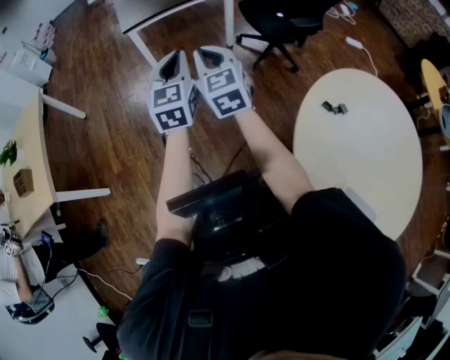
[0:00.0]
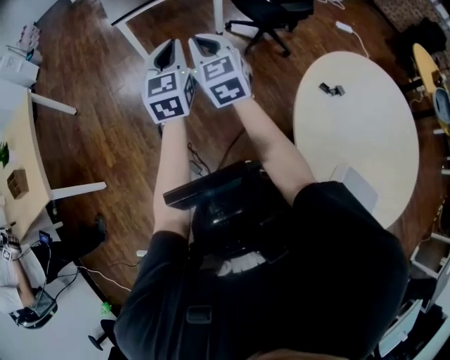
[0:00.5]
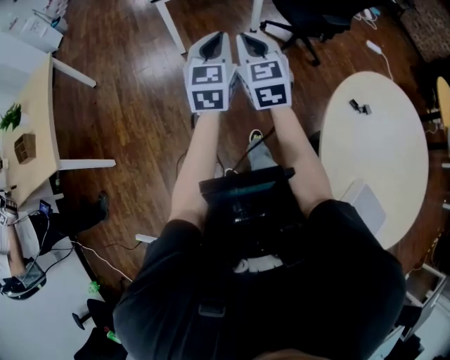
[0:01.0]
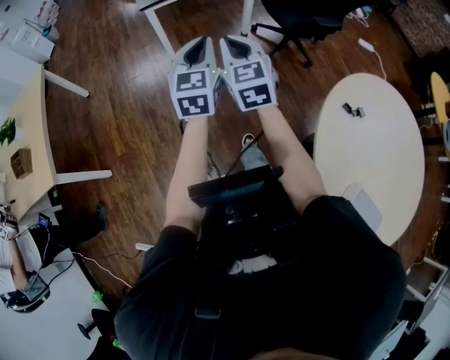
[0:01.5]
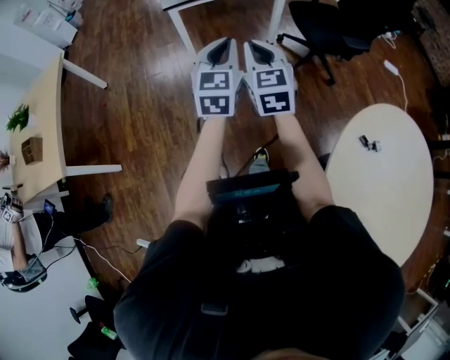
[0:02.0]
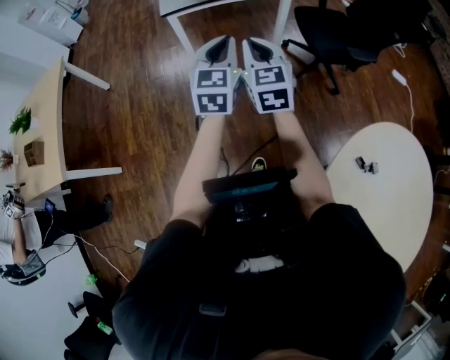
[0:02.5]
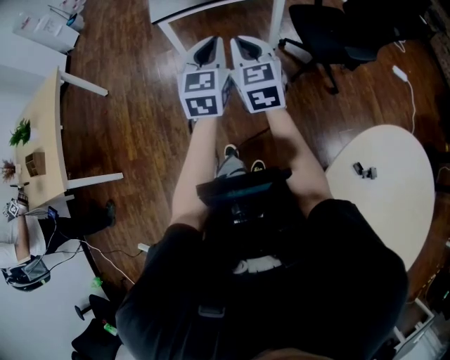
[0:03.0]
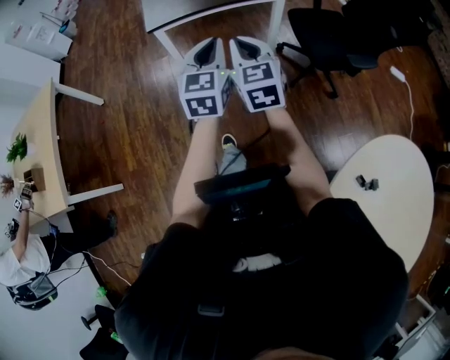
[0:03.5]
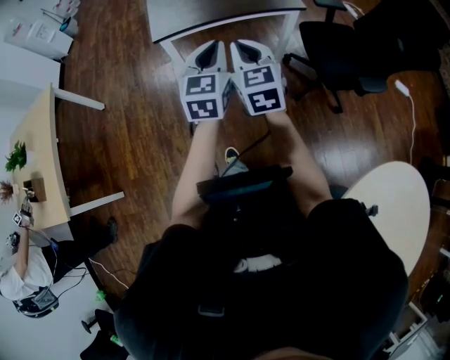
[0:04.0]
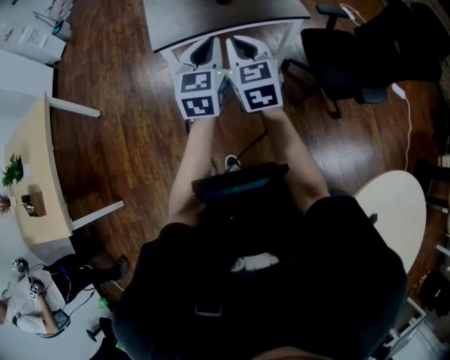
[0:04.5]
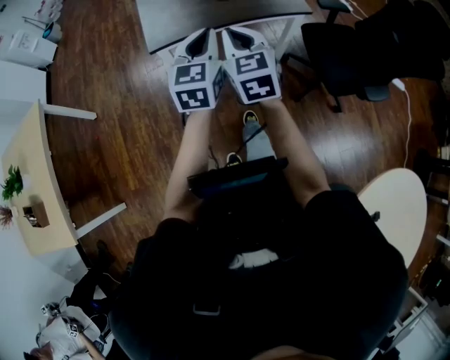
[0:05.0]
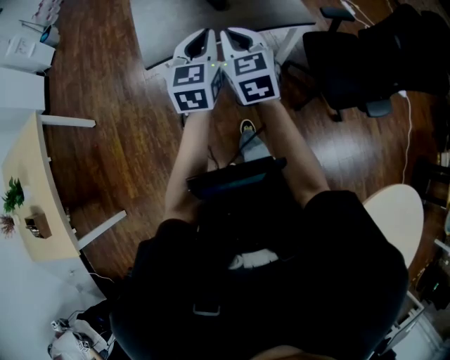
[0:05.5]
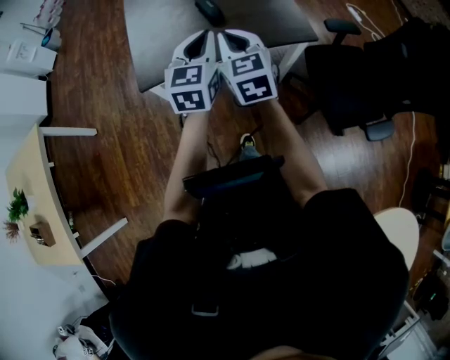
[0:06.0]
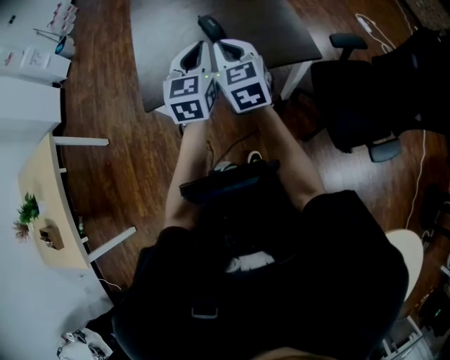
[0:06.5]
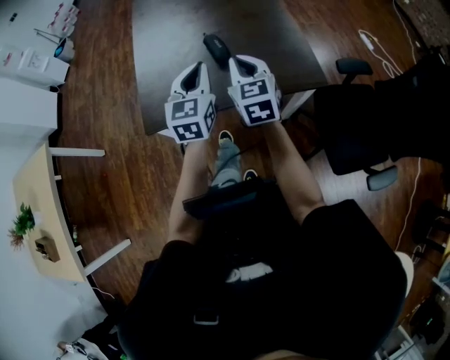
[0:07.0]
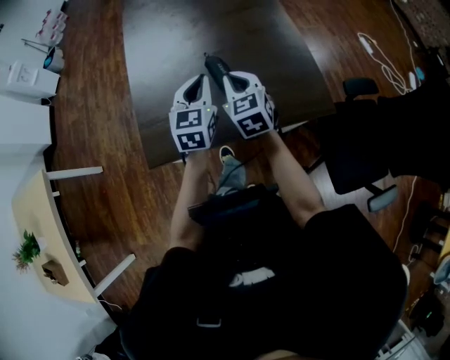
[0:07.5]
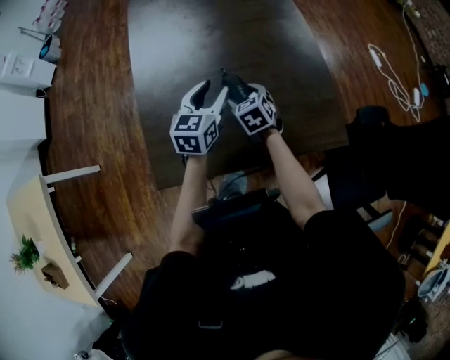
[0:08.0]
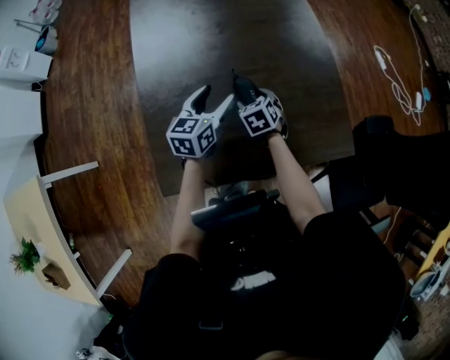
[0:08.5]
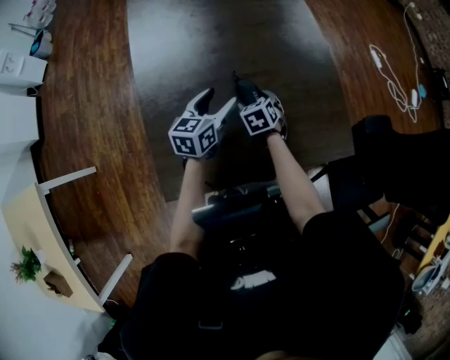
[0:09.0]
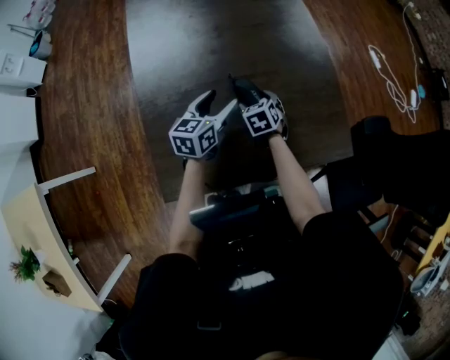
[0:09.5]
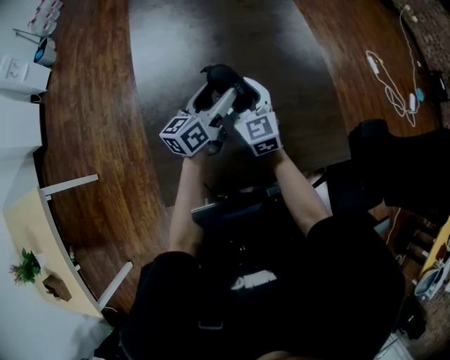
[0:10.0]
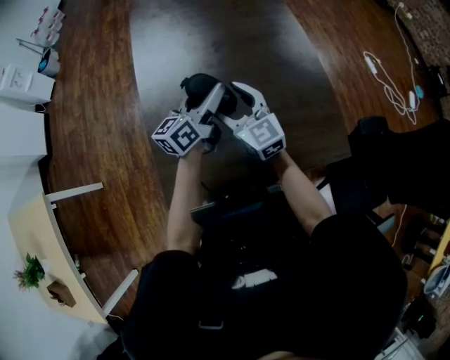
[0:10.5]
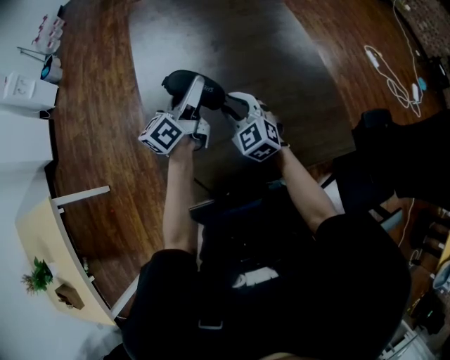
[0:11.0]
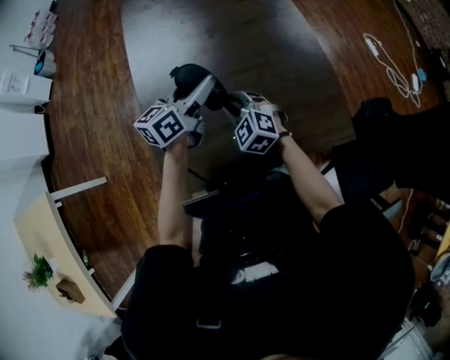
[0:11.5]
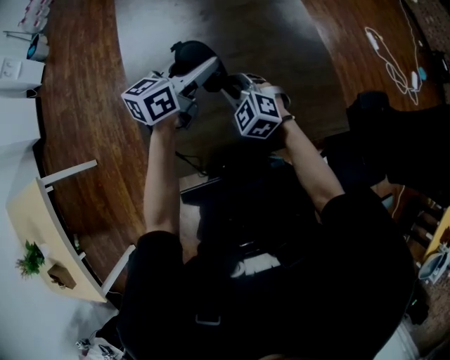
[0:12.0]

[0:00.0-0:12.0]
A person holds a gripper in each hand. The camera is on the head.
0:00.0 to 0:02.0: Both grippers travel together forward, roughly 10 cm.
0:02.0 to 0:04.0: Both grippers travel together forward, approximately 30 cm.
0:04.0 to 0:06.0: Both grippers travel together forward, about 30 cm.
0:06.0 to 0:08.0: The two grippers go approximately 40 cm forward and downward. The right gripper tilts its fingers some 30 degrees downward, and opens up. The left gripper opens its fingers.
0:08.0 to 0:10.0: The right gripper goes some 10 cm upward and to the left, and points its fingers some 30 degrees further upward; the left gripper shifts by some 5 cm, rotates some 30 degrees, and opens.
0:10.0 to 0:12.0: The left gripper goes to the left and returns, roughly 5 cm each way, while the right gripper heads backward, covering approximately 5 cm, turns by about 40 degrees, and closes up.

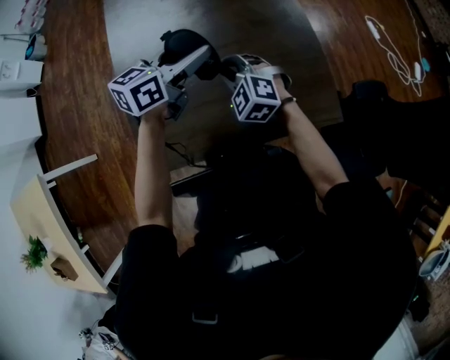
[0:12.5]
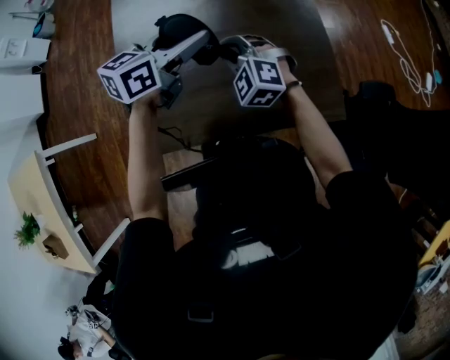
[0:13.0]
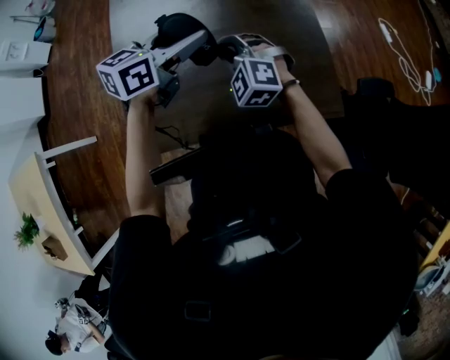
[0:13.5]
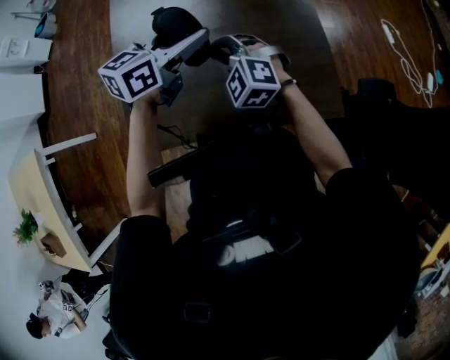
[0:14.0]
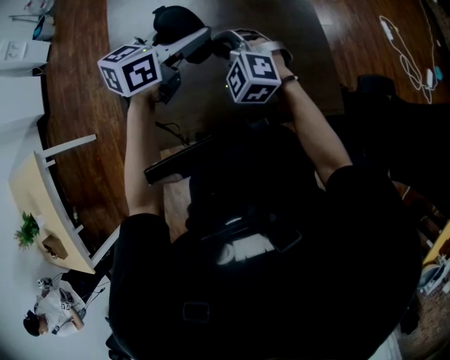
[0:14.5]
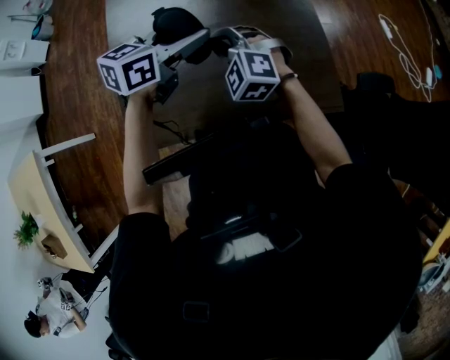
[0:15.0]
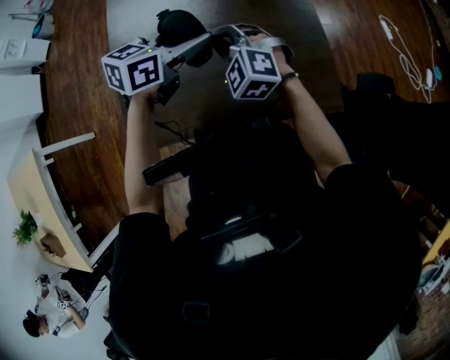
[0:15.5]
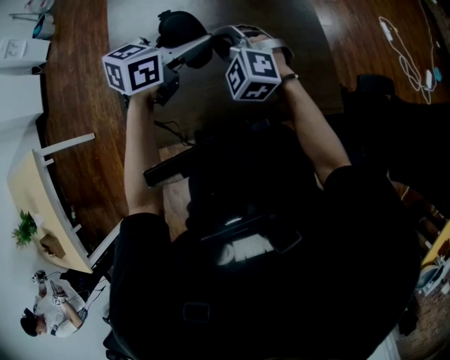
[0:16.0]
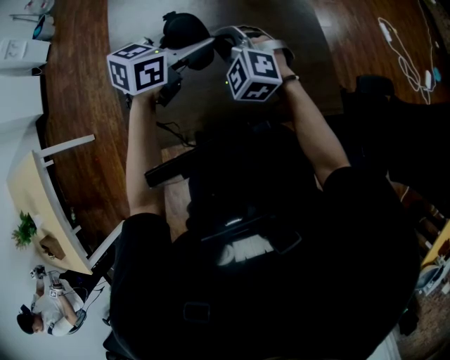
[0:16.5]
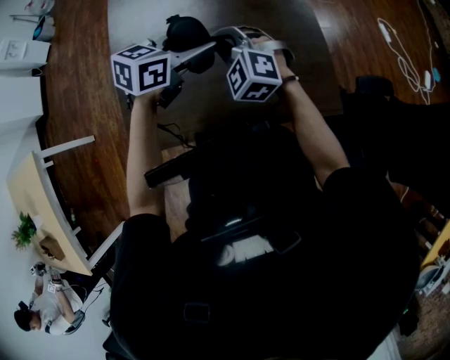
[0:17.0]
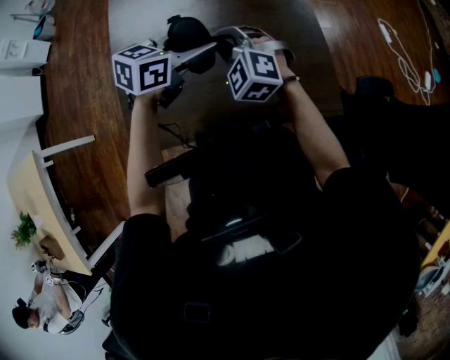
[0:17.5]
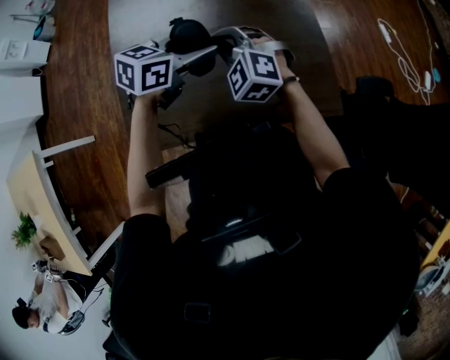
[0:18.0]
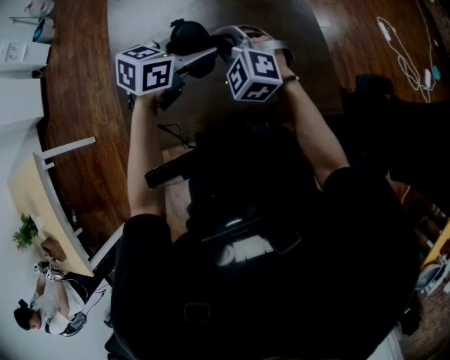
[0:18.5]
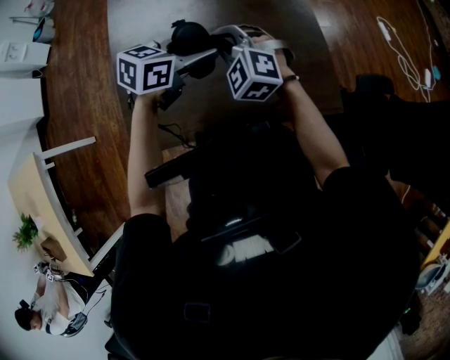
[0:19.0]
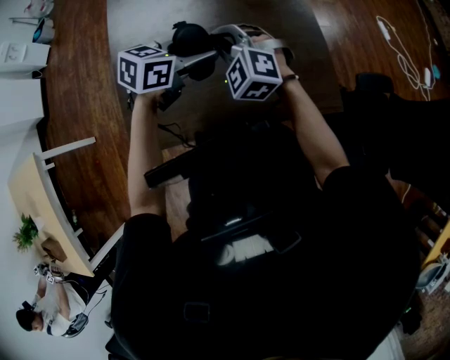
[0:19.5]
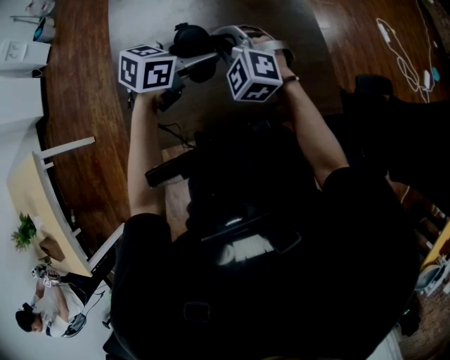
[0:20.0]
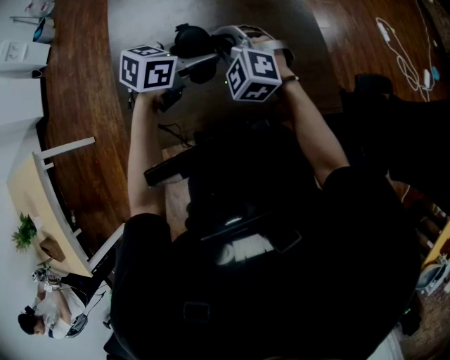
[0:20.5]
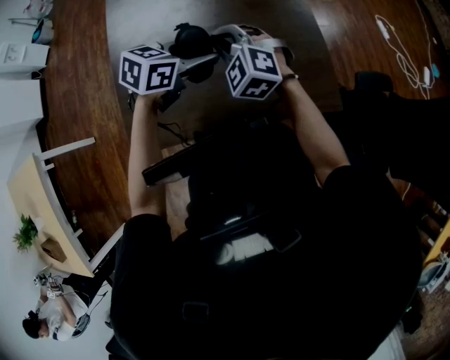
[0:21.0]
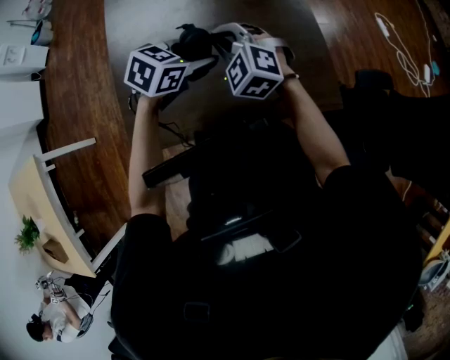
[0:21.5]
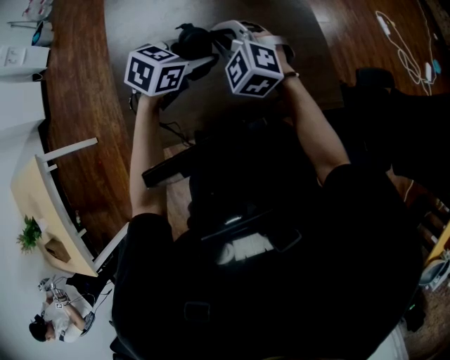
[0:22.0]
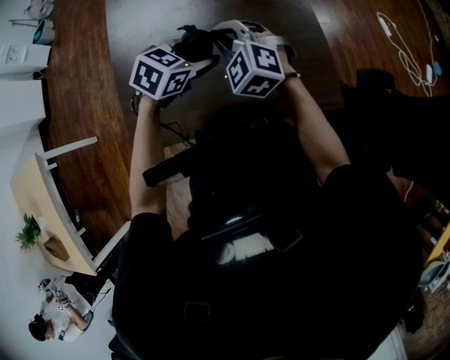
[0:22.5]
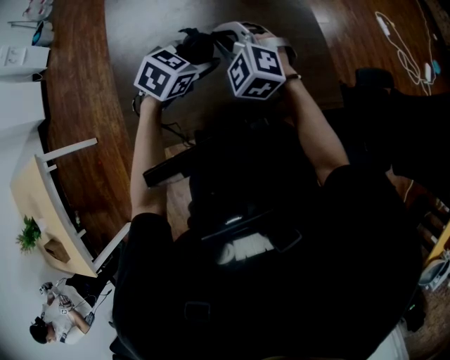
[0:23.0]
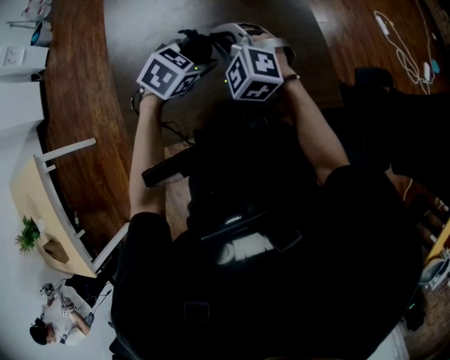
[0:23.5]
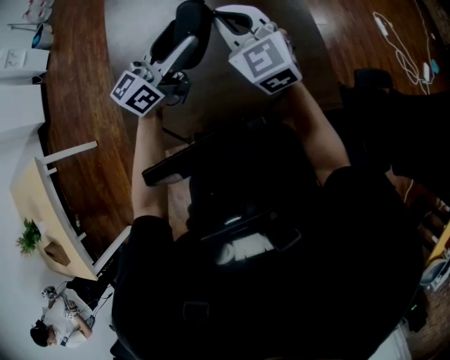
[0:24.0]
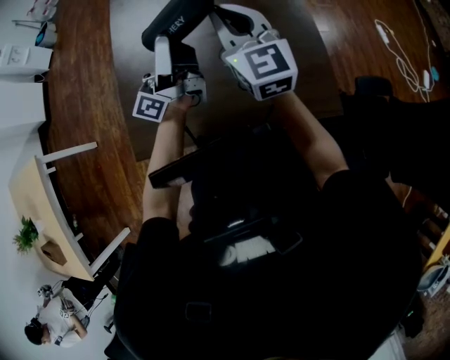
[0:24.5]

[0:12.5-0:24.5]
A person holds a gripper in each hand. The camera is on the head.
0:12.5 to 0:14.5: There are only small adjustments of the grippers.
0:14.5 to 0:16.5: The grippers make only small movements.
0:16.5 to 0:20.5: The grippers make only small movements.
0:20.5 to 0:22.5: The left gripper rotates roughly 20 degrees.
0:22.5 to 0:24.5: The right gripper goes some 10 cm upward, and tips its fingers upward by some 30 degrees. The left gripper goes approximately 20 cm upward and to the left, and tilts its fingers roughly 80 degrees upward.

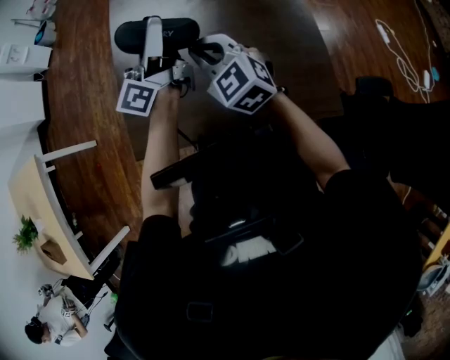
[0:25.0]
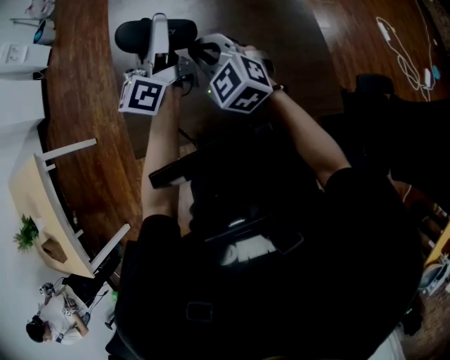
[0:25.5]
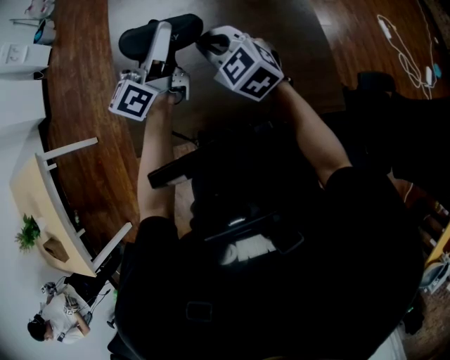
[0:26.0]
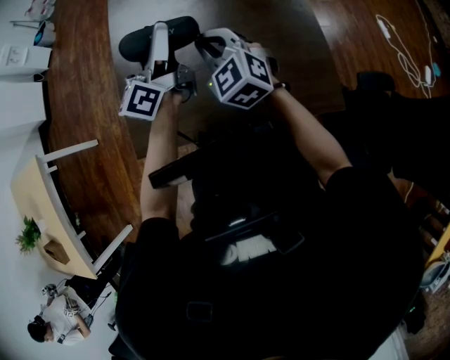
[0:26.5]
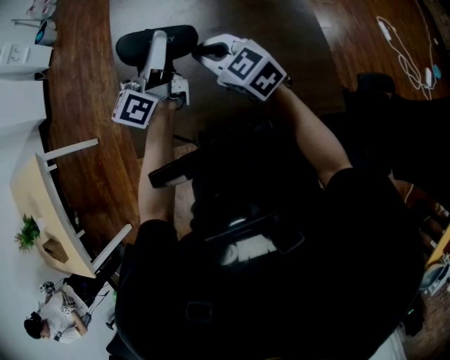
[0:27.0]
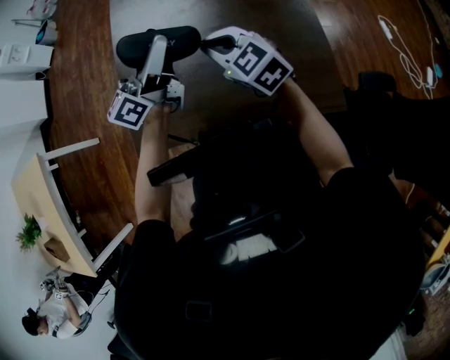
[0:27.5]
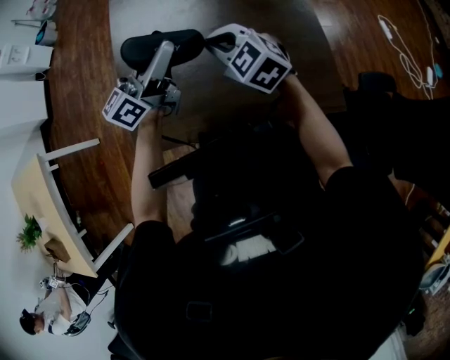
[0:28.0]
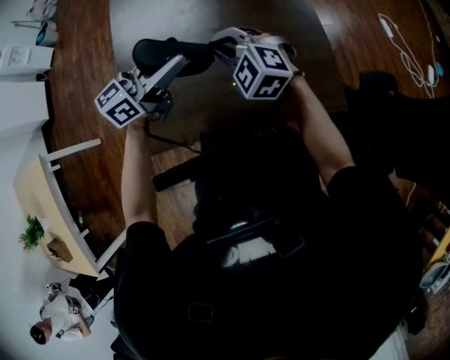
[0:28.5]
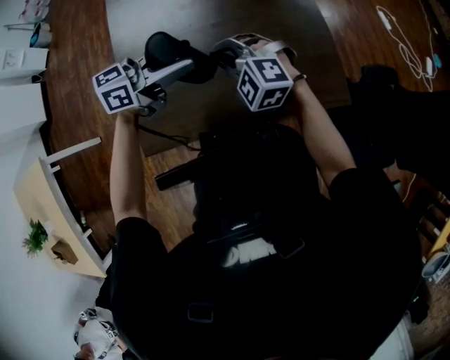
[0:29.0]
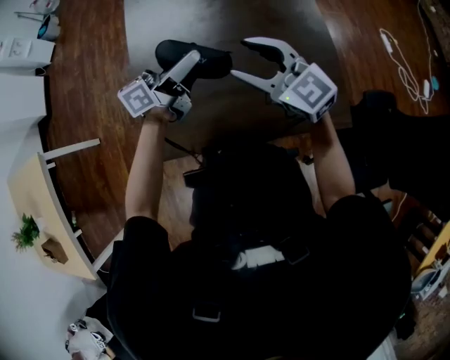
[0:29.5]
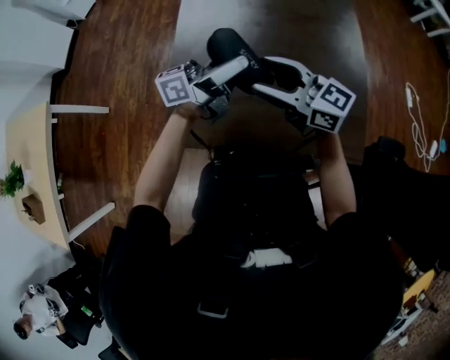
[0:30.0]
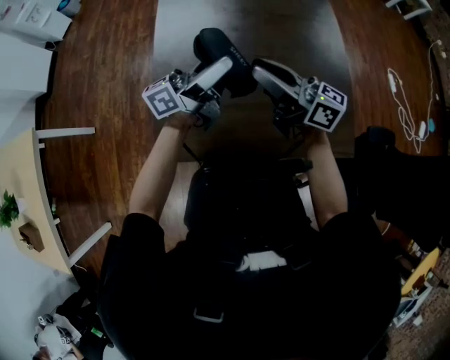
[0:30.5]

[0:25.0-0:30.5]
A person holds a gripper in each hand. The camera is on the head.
0:25.0 to 0:27.0: The grippers stay close to where they were, moving slightly.
0:27.0 to 0:28.5: The left gripper moves about 5 cm, and swivels roughly 40 degrees; the right gripper rotates approximately 30 degrees.
0:28.5 to 0:30.5: The left gripper shifts by some 10 cm, and changes its angle by approximately 30 degrees, while the right gripper travels upward by approximately 10 cm, tips its fingers upward by approximately 40 degrees, and opens, then closes once more.
